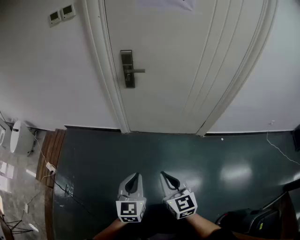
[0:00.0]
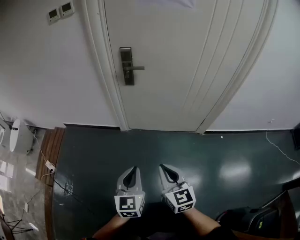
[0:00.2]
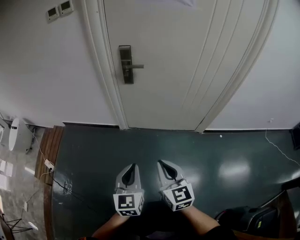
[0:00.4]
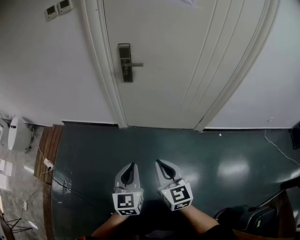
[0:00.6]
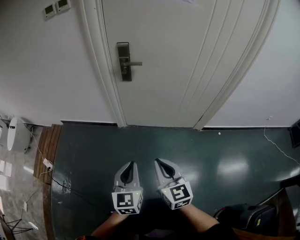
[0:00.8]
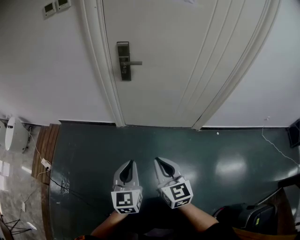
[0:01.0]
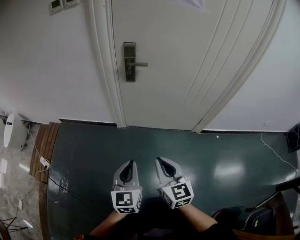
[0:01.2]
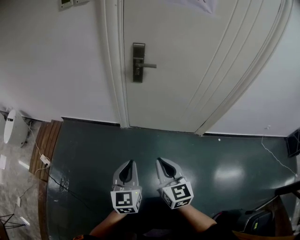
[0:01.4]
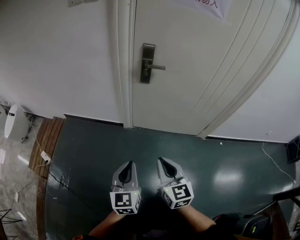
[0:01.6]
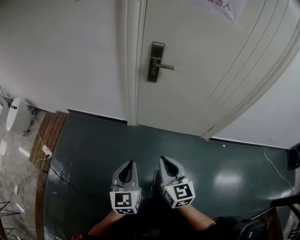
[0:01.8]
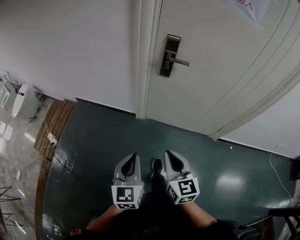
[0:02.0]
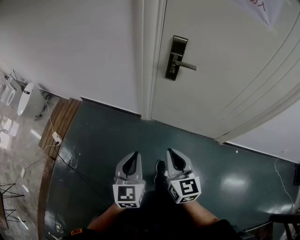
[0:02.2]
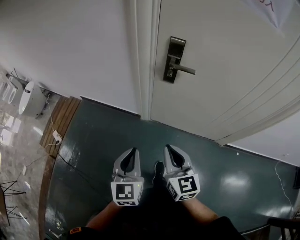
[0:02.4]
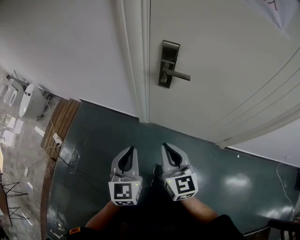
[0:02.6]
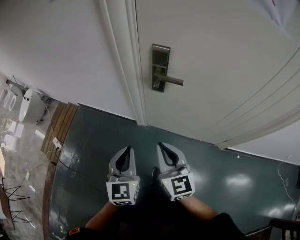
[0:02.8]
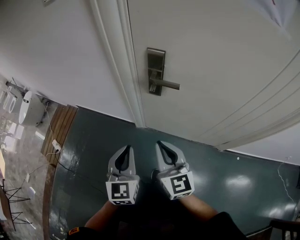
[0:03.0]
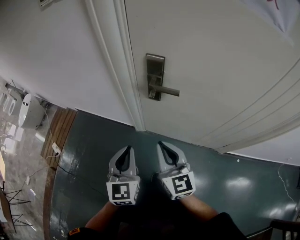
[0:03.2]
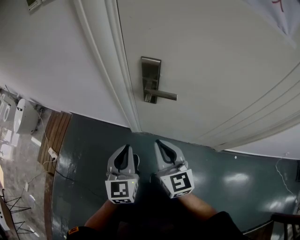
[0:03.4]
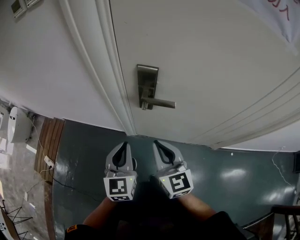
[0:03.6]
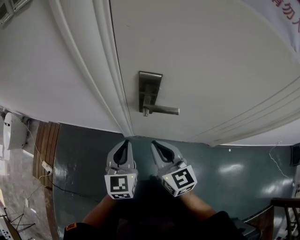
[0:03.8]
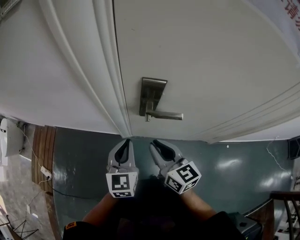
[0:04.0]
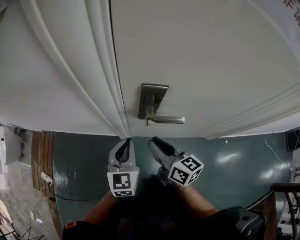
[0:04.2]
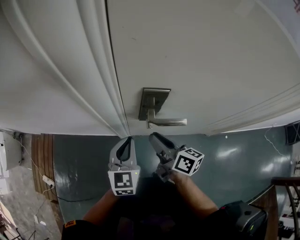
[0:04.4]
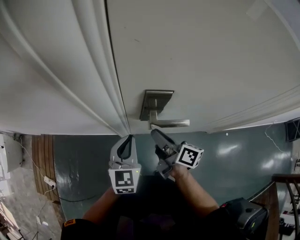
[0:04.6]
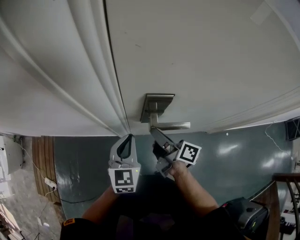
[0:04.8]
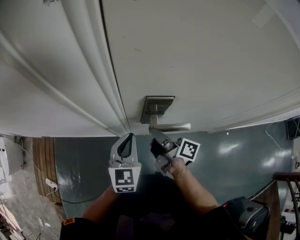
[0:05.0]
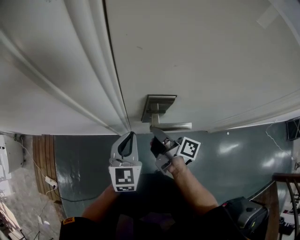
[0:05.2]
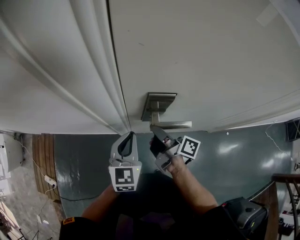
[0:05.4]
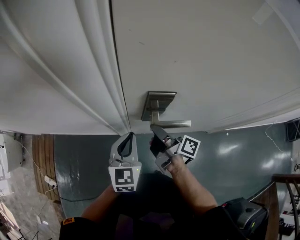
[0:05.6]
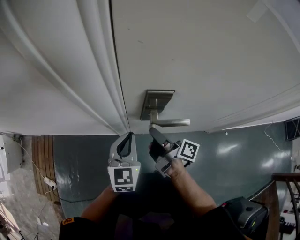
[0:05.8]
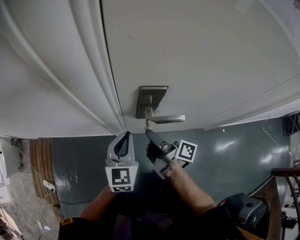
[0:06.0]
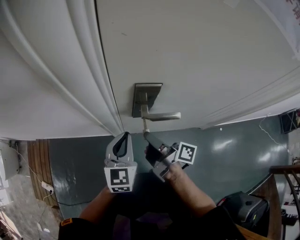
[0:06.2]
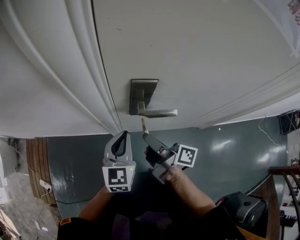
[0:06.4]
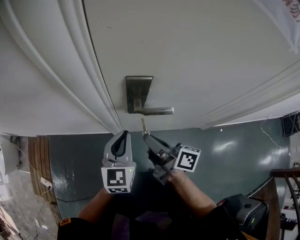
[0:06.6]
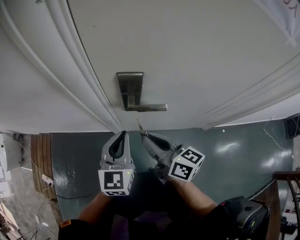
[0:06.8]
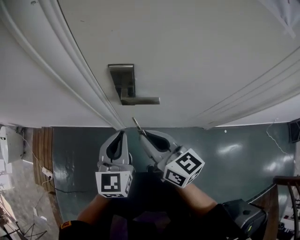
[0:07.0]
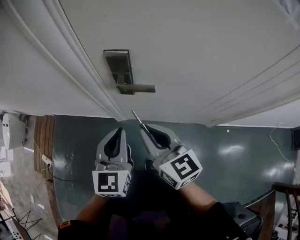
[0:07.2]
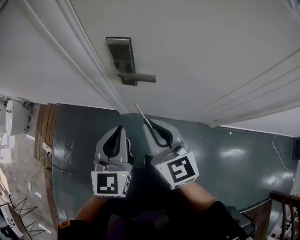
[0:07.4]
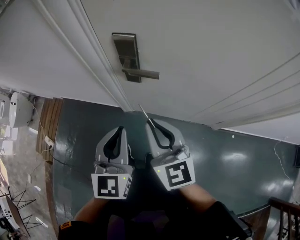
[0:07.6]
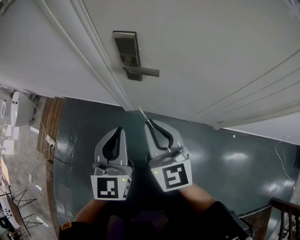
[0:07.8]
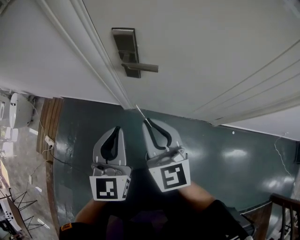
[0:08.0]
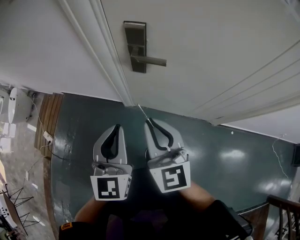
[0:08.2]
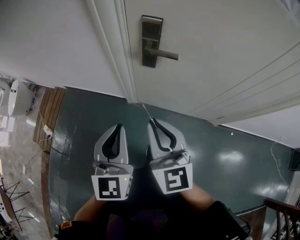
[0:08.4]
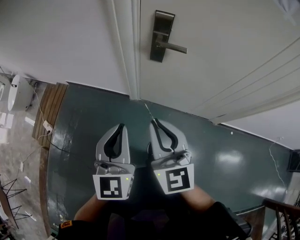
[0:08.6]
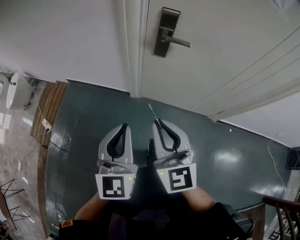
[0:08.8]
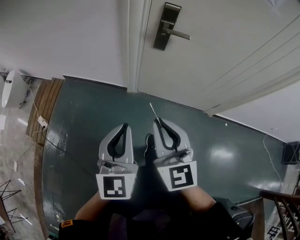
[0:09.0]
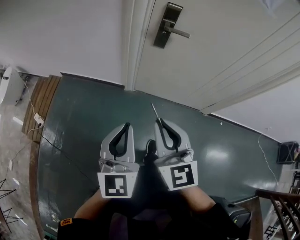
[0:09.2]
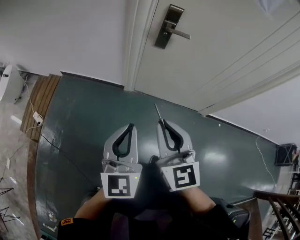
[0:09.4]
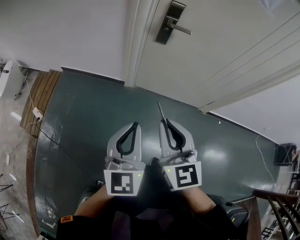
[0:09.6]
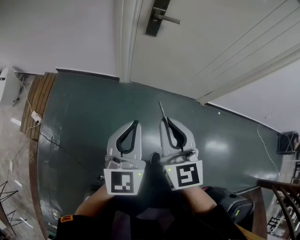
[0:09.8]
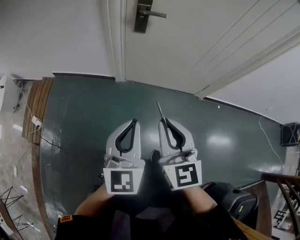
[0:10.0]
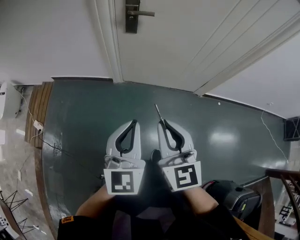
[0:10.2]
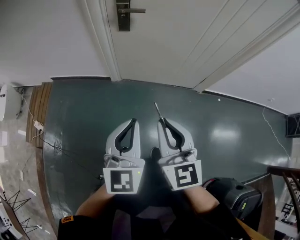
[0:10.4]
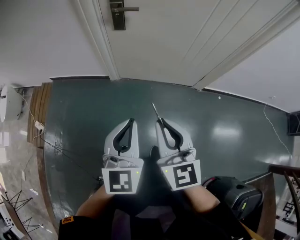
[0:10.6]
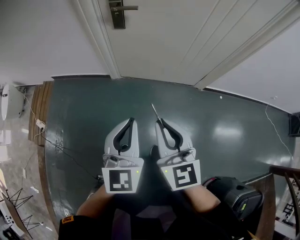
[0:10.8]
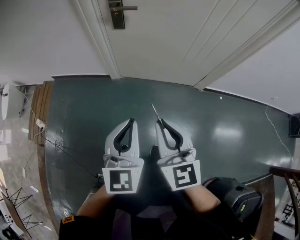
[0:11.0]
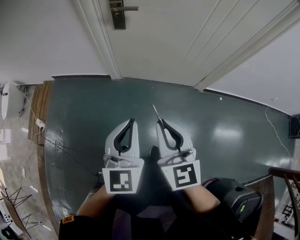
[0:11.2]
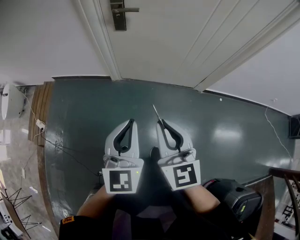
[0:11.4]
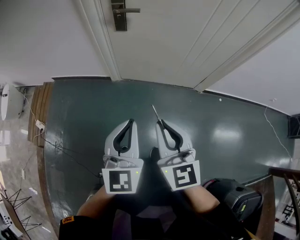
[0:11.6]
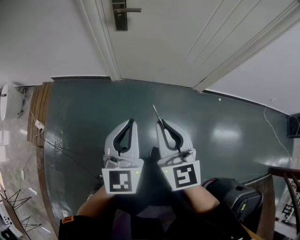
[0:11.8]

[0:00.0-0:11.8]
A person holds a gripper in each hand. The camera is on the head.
0:00.0 to 0:01.4: The right gripper moves forward and to the left, roughly 10 cm, while the left gripper goes approximately 10 cm to the left and forward.
0:01.4 to 0:03.0: Both grippers travel together forward, approximately 30 cm.
0:03.0 to 0:04.4: Both grippers move forward, about 20 cm. The right gripper twists approximately 50 degrees clockwise, seen from behind. The left gripper turns by some 20 degrees.
0:04.4 to 0:06.0: The right gripper changes its angle by some 40 degrees.
0:06.0 to 0:07.4: The grippers both shift backward, upward and to the right by about 20 cm. The right gripper twists approximately 80 degrees counterclockwise, seen from behind.
0:07.4 to 0:08.8: Both grippers move backward and to the left, approximately 25 cm.
0:08.8 to 0:10.4: Both grippers travel together backward and to the right, some 20 cm.
0:10.4 to 0:11.8: The grippers move only a little.

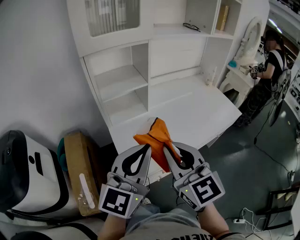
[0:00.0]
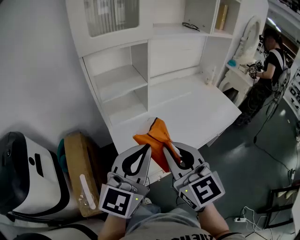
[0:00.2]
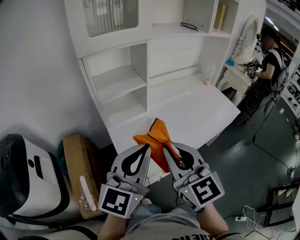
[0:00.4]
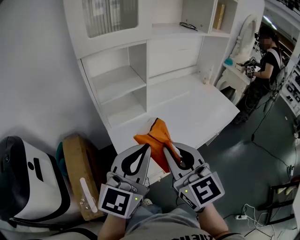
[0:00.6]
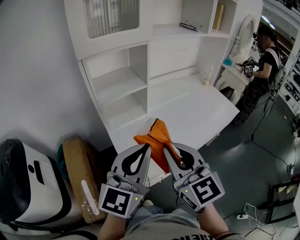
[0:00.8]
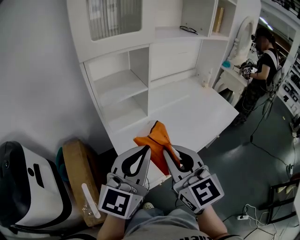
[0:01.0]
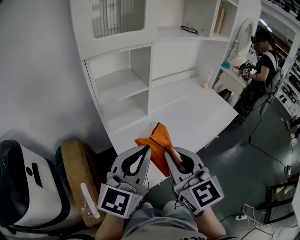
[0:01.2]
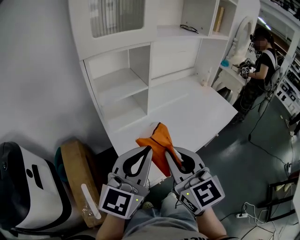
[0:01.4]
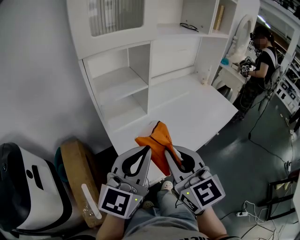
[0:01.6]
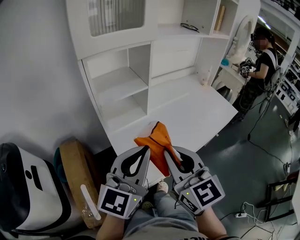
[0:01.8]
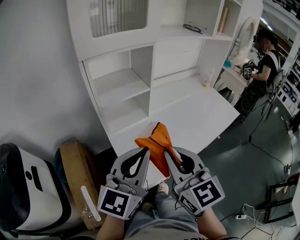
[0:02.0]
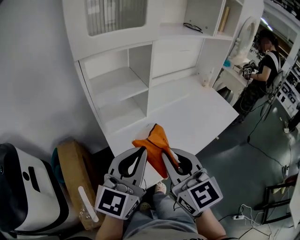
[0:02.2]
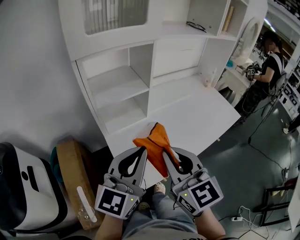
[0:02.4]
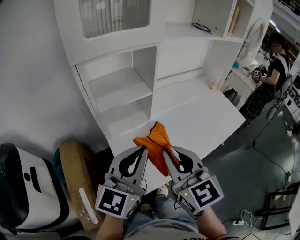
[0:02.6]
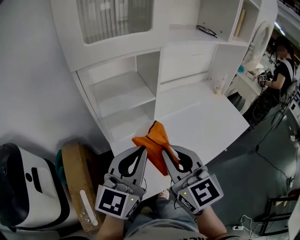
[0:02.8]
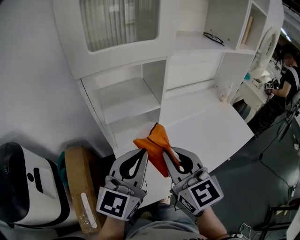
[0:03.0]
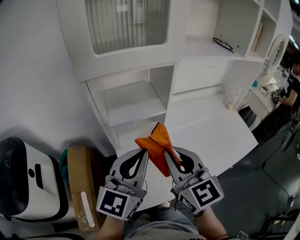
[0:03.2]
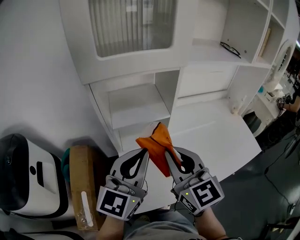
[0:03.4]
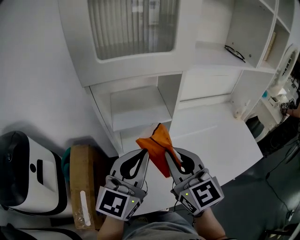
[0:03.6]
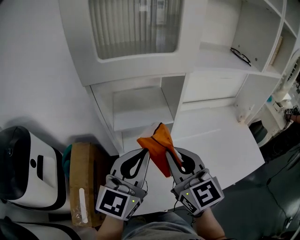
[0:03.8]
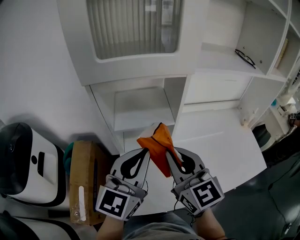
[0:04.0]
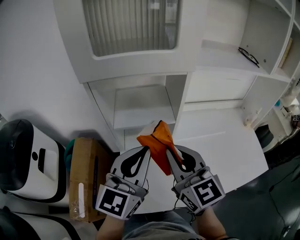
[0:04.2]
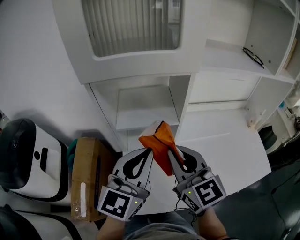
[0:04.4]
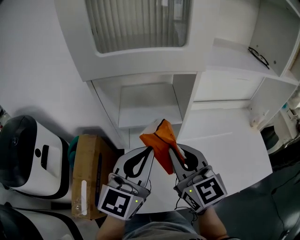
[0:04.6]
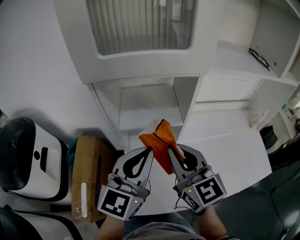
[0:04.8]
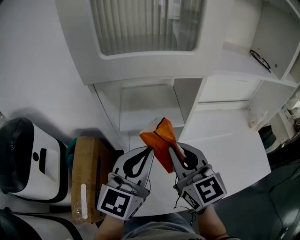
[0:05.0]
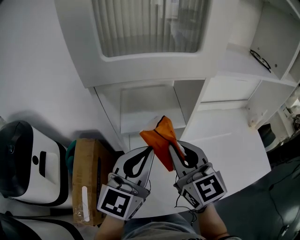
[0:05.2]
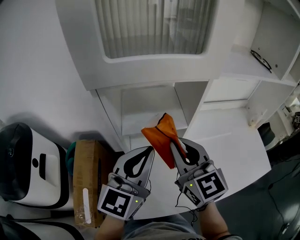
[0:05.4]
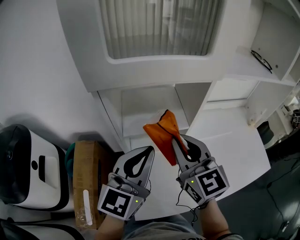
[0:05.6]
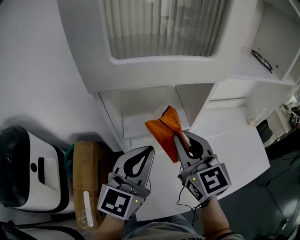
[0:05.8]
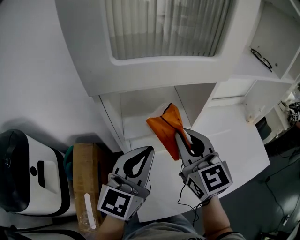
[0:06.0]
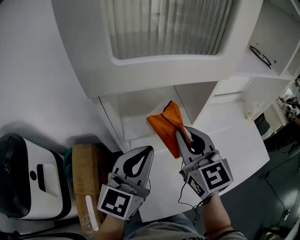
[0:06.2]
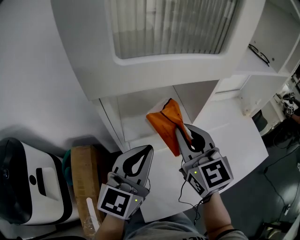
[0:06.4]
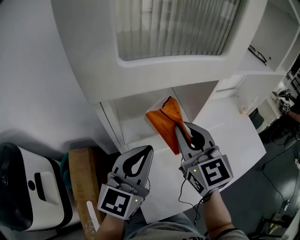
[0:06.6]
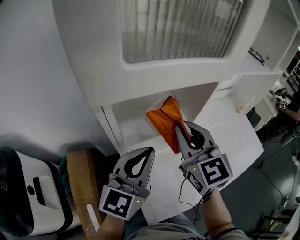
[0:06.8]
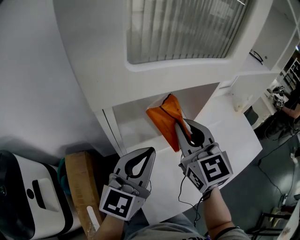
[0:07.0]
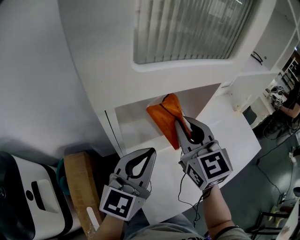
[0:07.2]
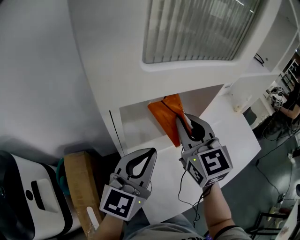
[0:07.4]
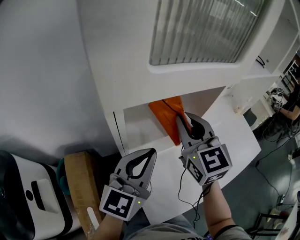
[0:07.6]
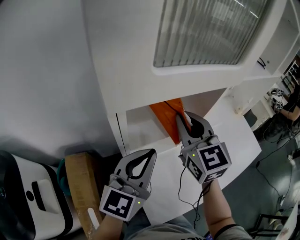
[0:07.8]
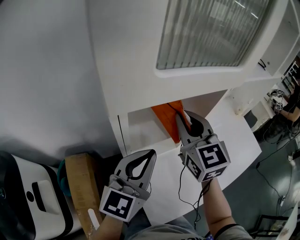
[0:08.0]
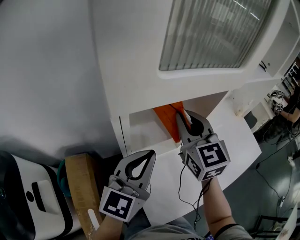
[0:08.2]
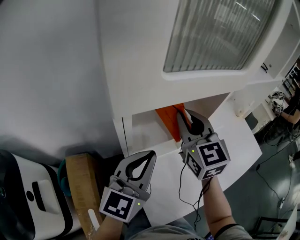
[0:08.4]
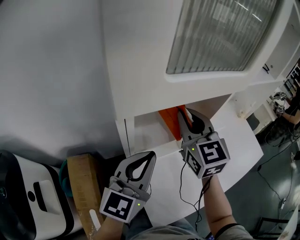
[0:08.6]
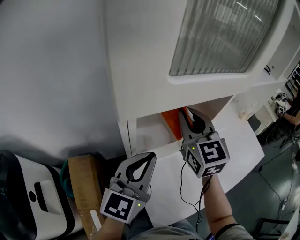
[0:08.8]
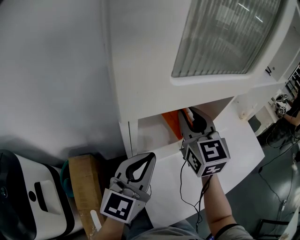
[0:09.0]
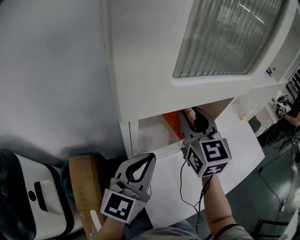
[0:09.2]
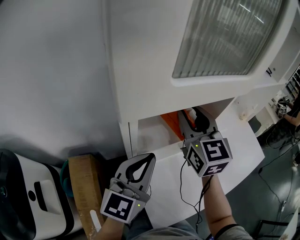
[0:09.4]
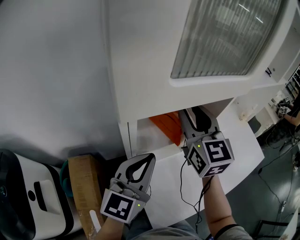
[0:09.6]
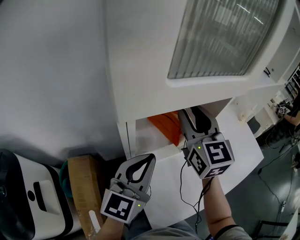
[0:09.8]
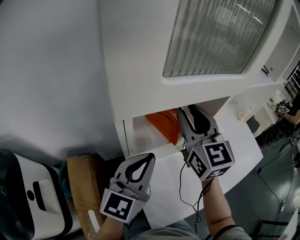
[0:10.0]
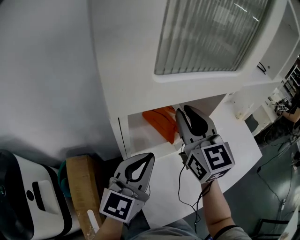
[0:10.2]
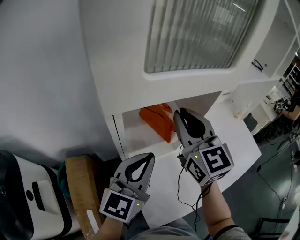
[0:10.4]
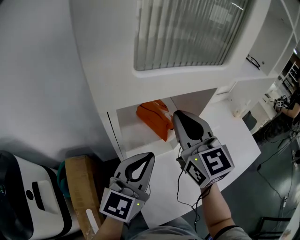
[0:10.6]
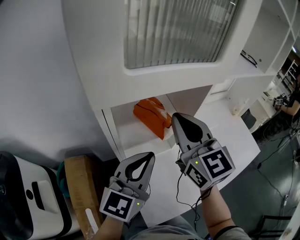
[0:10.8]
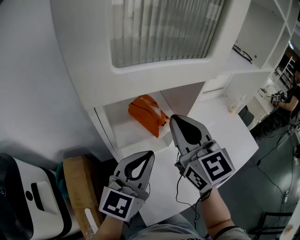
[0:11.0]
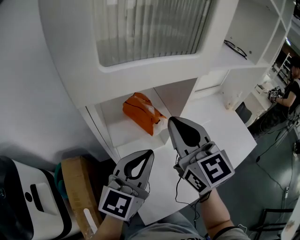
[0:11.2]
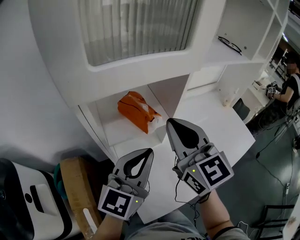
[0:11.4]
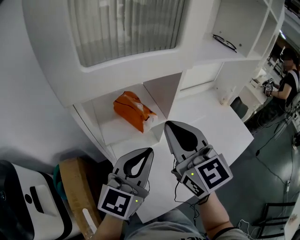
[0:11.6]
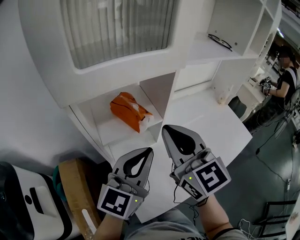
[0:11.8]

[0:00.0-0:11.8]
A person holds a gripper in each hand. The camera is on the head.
0:00.0 to 0:01.4: The grippers stay close to where they were, moving slightly.
0:01.4 to 0:03.0: The grippers both shift forward by roughly 15 cm.
0:03.0 to 0:04.4: The two grippers go roughly 10 cm forward.
0:04.4 to 0:06.0: The left gripper moves to the left and forward, roughly 10 cm; the right gripper moves forward, roughly 10 cm.
0:06.0 to 0:07.4: The right gripper travels forward by some 5 cm.
0:07.4 to 0:08.8: The grippers make only small movements.
0:08.8 to 0:10.4: The right gripper ends up roughly 5 cm from where it was, and opens, then closes again.
0:10.4 to 0:11.8: The left gripper is displaced to the right by some 10 cm; the right gripper heads backward and to the right, covering some 10 cm.
